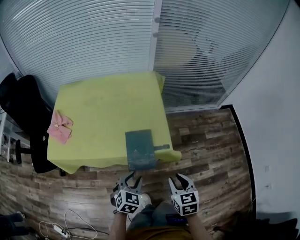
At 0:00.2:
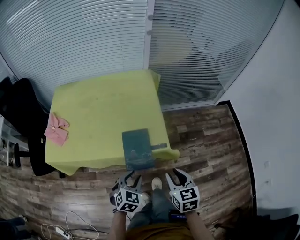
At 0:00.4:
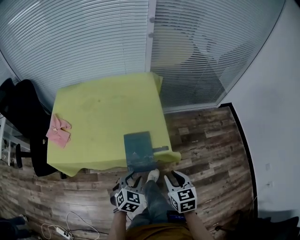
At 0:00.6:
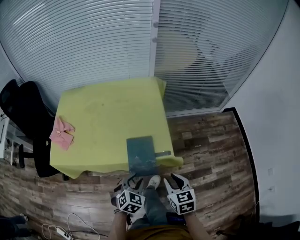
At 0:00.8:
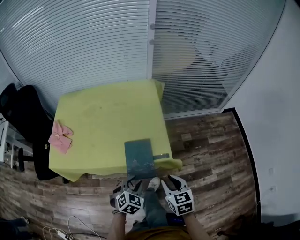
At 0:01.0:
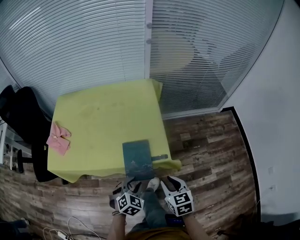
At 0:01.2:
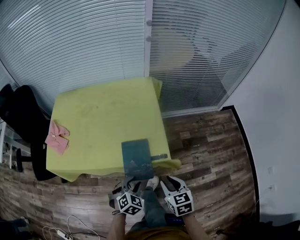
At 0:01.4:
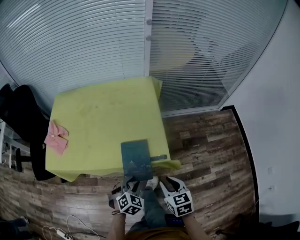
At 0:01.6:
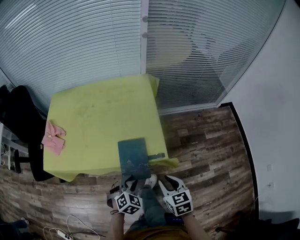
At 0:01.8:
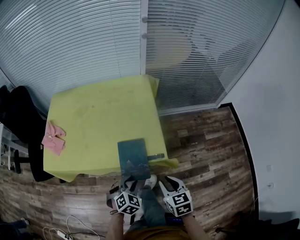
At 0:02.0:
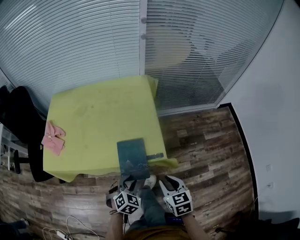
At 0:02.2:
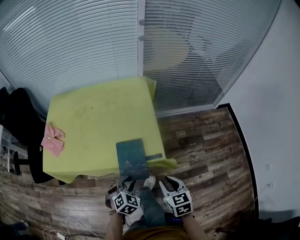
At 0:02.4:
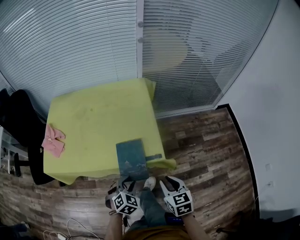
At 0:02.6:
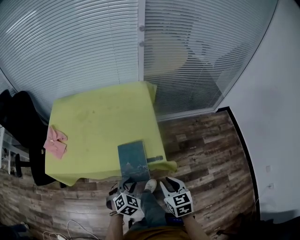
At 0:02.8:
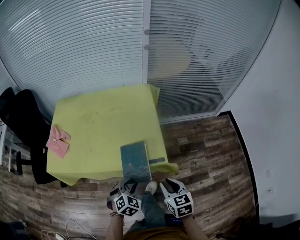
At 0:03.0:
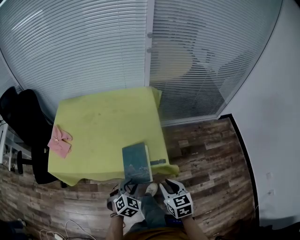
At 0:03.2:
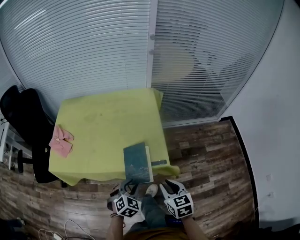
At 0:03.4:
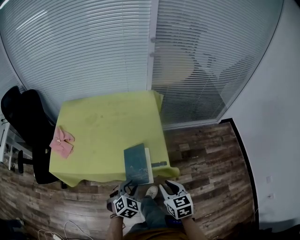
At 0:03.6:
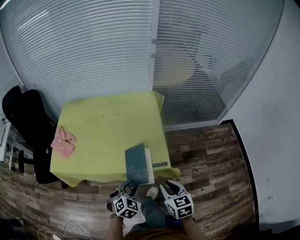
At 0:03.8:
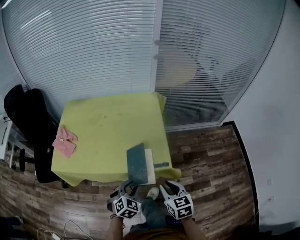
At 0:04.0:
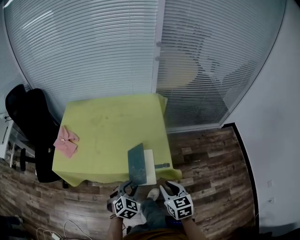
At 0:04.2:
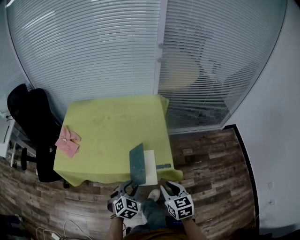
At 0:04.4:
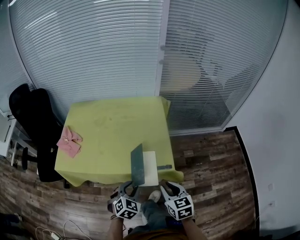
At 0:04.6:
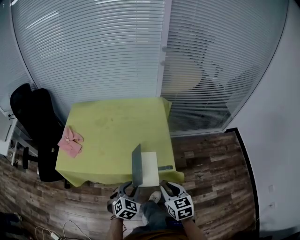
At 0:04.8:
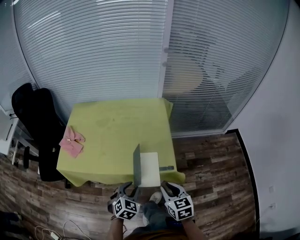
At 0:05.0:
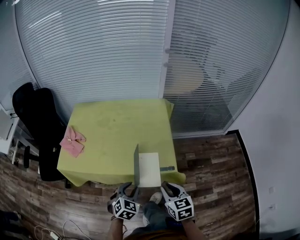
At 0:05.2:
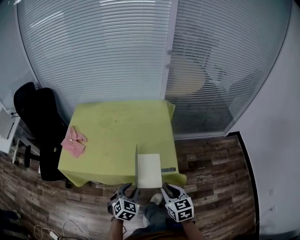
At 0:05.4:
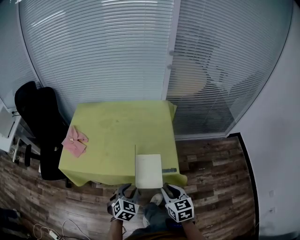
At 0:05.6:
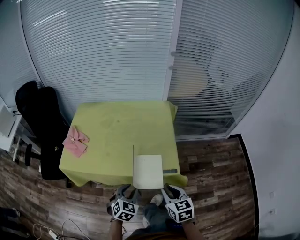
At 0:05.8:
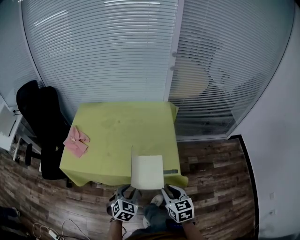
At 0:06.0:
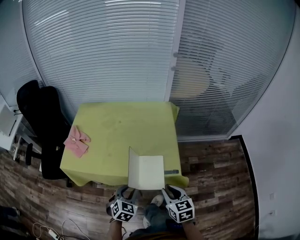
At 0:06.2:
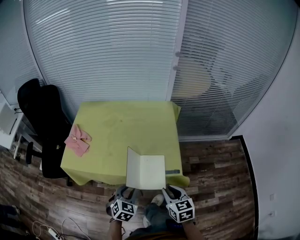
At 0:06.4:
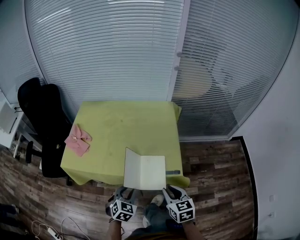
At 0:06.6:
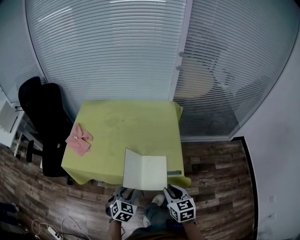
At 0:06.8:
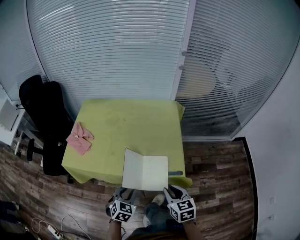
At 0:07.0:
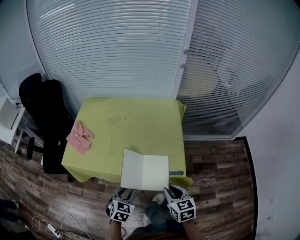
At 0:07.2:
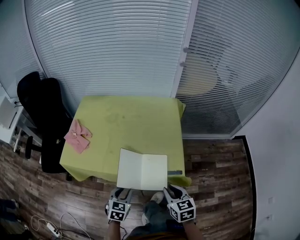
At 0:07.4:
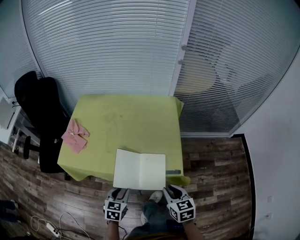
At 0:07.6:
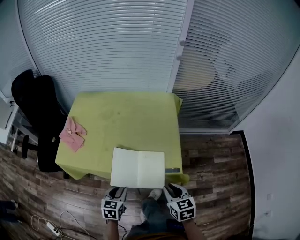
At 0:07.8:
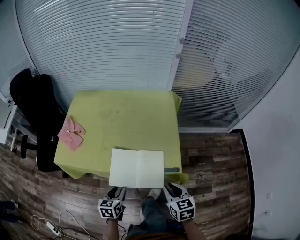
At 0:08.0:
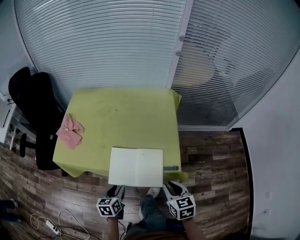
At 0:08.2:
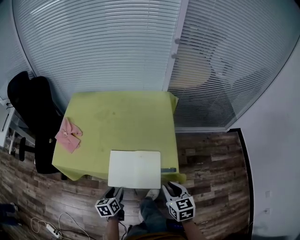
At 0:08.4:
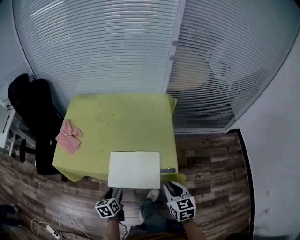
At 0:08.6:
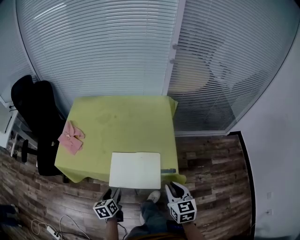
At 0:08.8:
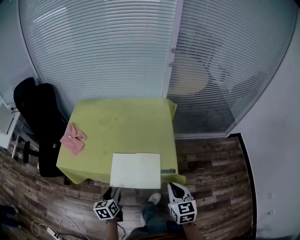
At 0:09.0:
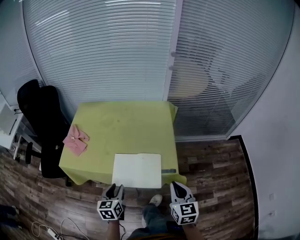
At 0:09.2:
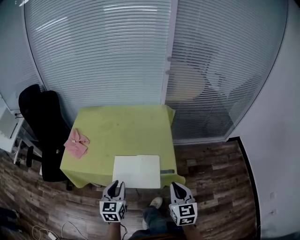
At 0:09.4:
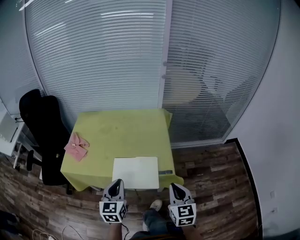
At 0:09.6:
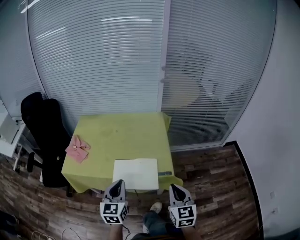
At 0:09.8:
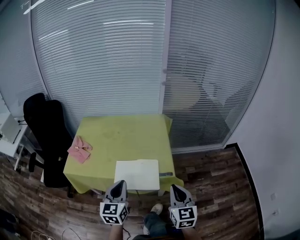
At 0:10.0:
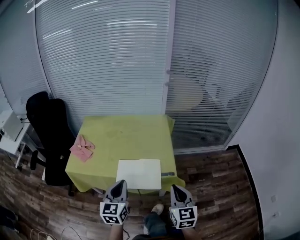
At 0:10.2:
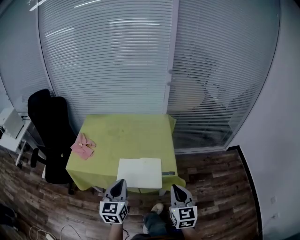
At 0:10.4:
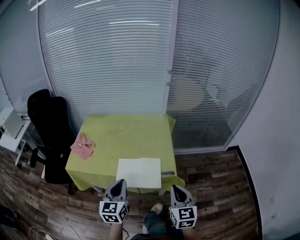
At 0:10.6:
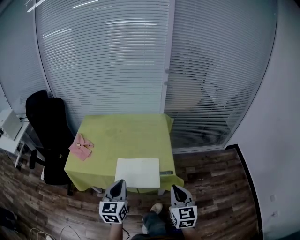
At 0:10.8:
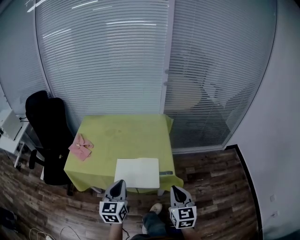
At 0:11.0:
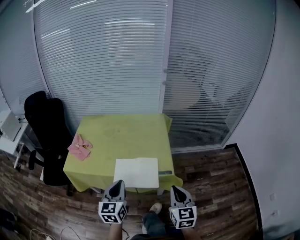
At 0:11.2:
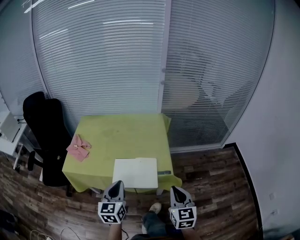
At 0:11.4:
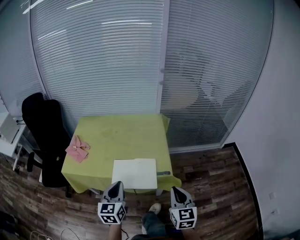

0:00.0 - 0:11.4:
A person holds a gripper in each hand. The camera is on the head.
0:00.0 - 0:01.4: The left gripper heads downward, covering approximately 5 cm, while the right gripper shifts by some 5 cm.
0:01.4 - 0:02.8: The grippers stay close to where they were, moving slightly.
0:02.8 - 0:04.2: The grippers move only a little.
0:04.2 - 0:05.6: There are only small adjustments of the grippers.
0:05.6 - 0:07.2: The left gripper moves roughly 5 cm.
0:07.2 - 0:08.6: The left gripper is displaced to the left by approximately 5 cm, swivels approximately 40 degrees, and opens.
0:08.6 - 0:10.0: The left gripper travels upward by some 25 cm, swivels approximately 40 degrees, and closes up, while the right gripper shifts about 10 cm upward and backward, and changes its angle by some 20 degrees.
0:10.0 - 0:11.4: The grippers stay close to where they were, moving slightly.

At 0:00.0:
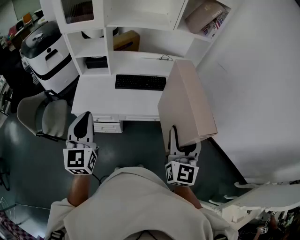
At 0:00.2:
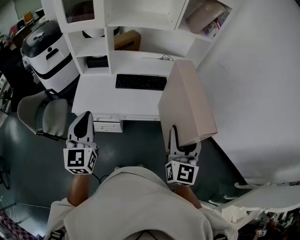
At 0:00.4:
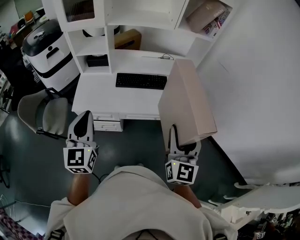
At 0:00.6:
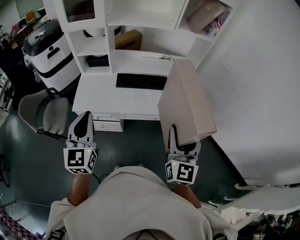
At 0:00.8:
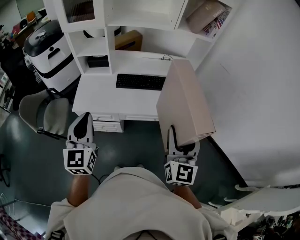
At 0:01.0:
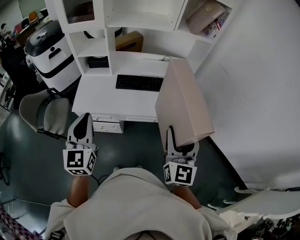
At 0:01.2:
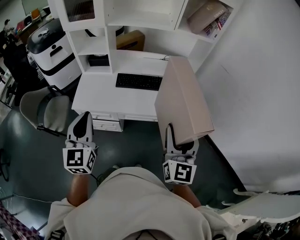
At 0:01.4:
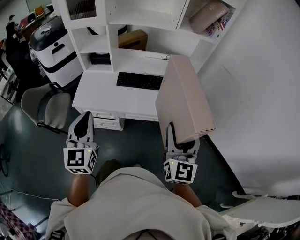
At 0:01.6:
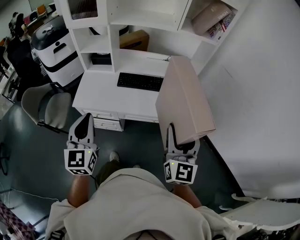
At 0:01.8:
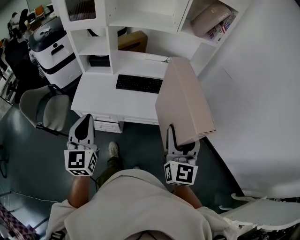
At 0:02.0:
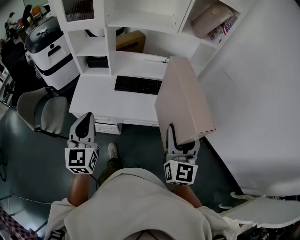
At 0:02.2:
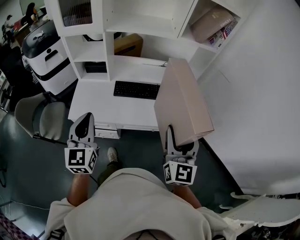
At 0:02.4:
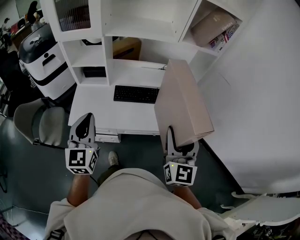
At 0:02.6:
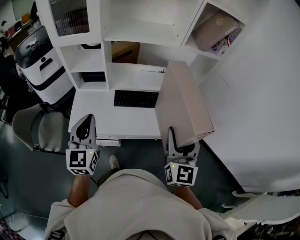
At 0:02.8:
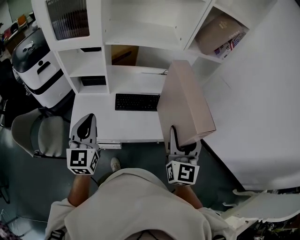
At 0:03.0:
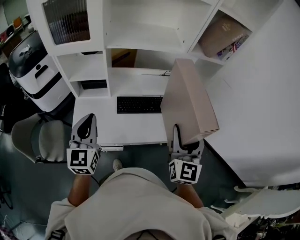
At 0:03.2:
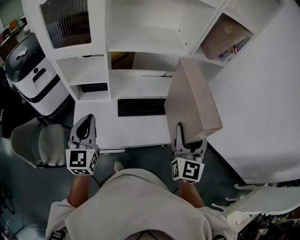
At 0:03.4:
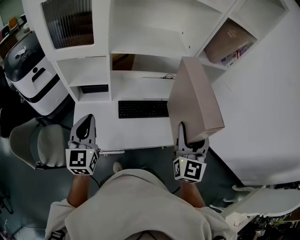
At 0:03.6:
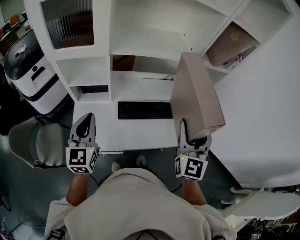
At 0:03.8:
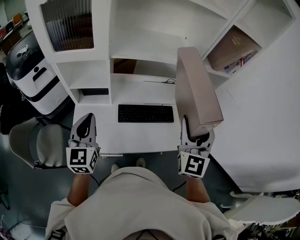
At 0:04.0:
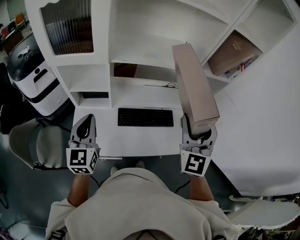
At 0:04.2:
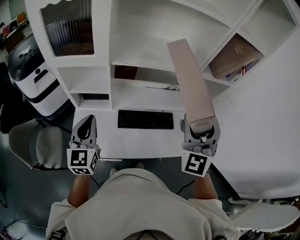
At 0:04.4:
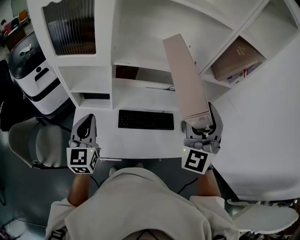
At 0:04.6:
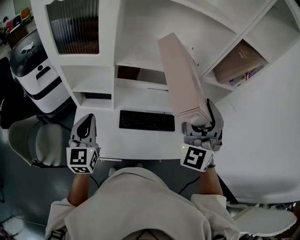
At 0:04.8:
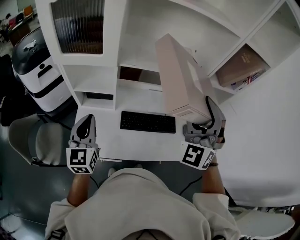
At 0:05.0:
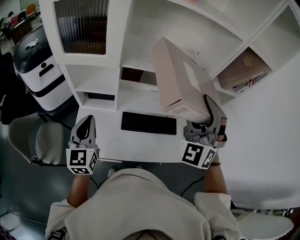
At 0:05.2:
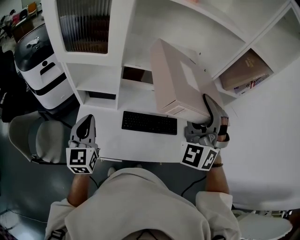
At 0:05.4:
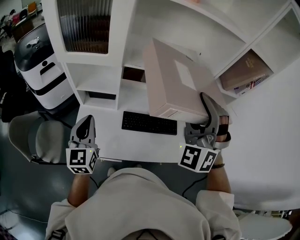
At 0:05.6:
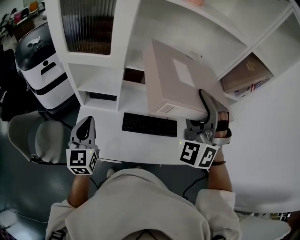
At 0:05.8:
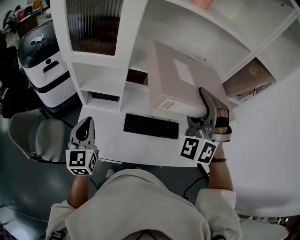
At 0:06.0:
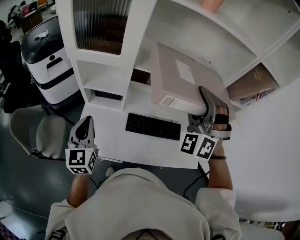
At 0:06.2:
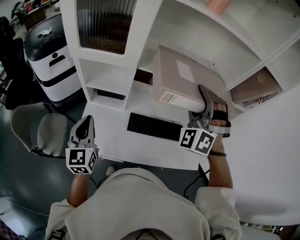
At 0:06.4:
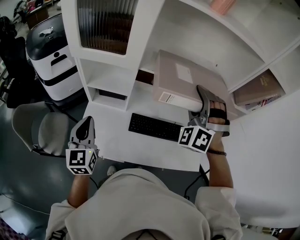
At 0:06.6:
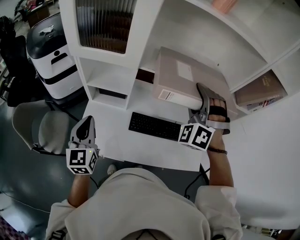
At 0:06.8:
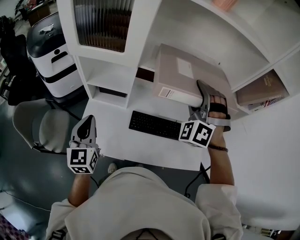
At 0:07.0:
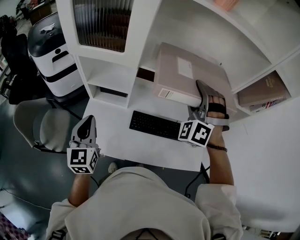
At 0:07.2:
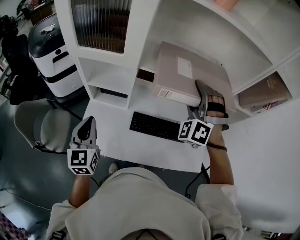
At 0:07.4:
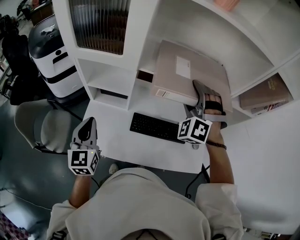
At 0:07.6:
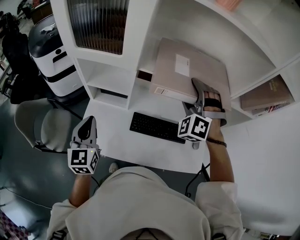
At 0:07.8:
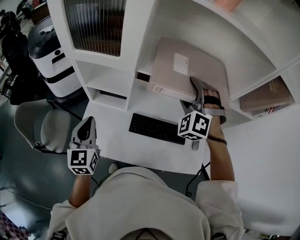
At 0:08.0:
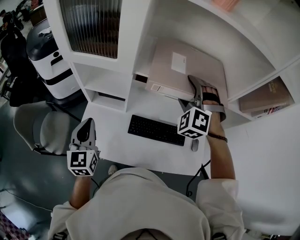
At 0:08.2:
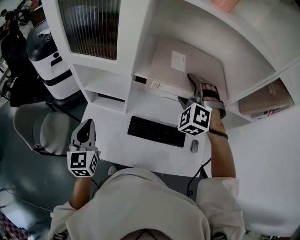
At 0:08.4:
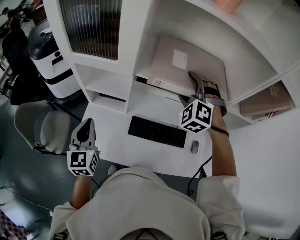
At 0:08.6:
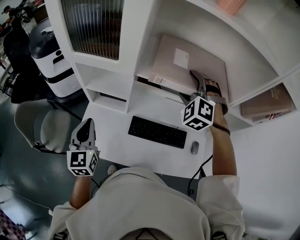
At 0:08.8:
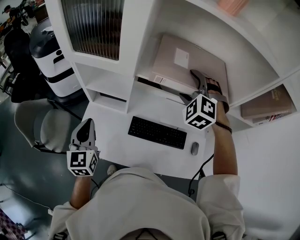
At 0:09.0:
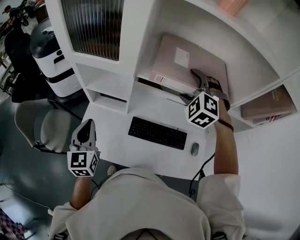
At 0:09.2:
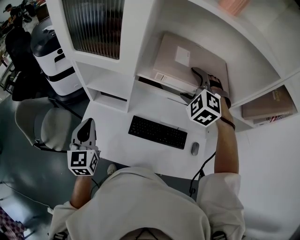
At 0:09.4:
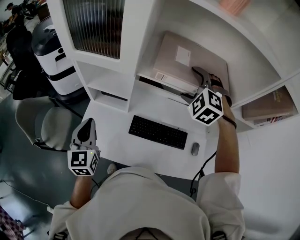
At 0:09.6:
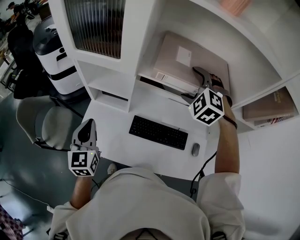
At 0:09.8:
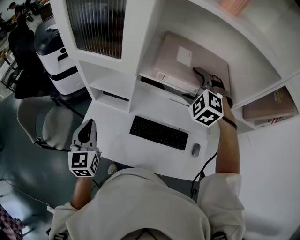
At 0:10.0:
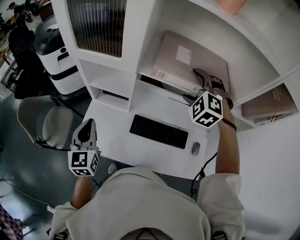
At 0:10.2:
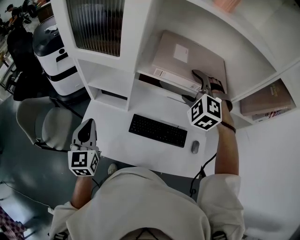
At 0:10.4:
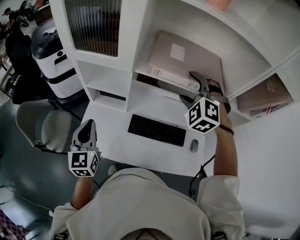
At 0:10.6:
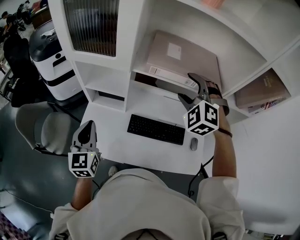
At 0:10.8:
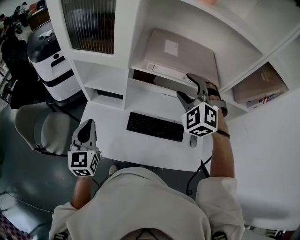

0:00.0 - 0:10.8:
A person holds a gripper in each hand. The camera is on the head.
0:00.0 - 0:01.6: The left gripper changes place by roughly 5 cm.
0:01.6 - 0:03.0: Both grippers move forward and to the left, approximately 25 cm.
0:03.0 - 0:04.6: The left gripper is displaced forward and to the left by roughly 10 cm; the right gripper is displaced forward and upward by approximately 20 cm, and twists approximately 40 degrees counterclockwise, seen from behind.
0:04.6 - 0:06.2: The right gripper travels forward and to the left by some 10 cm, and swivels about 40 degrees. Meanwhile the left gripper travels to the left by about 5 cm.
0:06.2 - 0:07.8: The right gripper is displaced forward and downward by about 10 cm.
0:07.8 - 0:09.2: The right gripper is displaced forward by approximately 5 cm.
0:09.2 - 0:10.8: The right gripper travels backward by about 10 cm.

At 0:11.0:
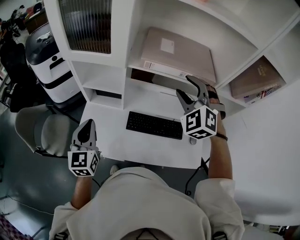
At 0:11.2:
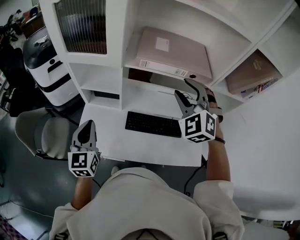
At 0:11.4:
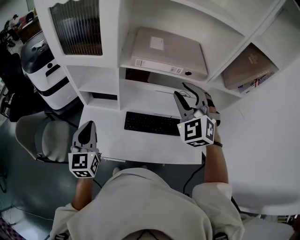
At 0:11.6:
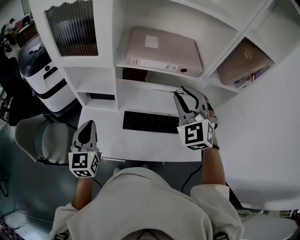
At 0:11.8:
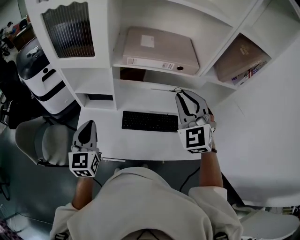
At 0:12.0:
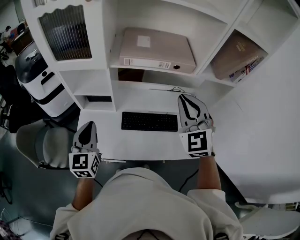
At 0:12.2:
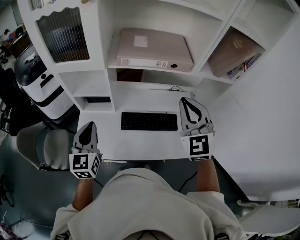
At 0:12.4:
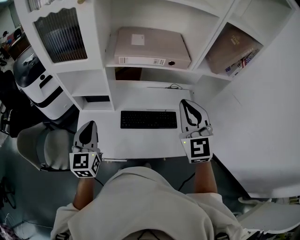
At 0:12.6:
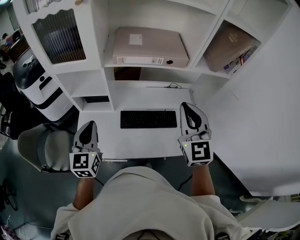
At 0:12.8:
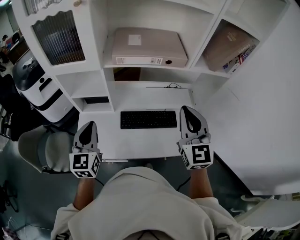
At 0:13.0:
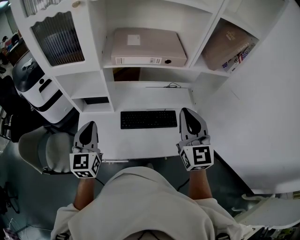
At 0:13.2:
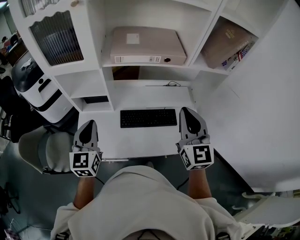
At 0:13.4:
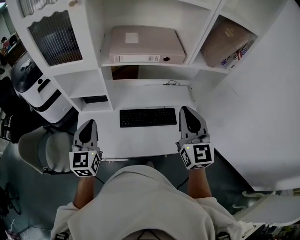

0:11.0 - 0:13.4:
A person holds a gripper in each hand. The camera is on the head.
0:11.0 - 0:12.2: The left gripper is displaced to the right by roughly 5 cm. Meanwhile the right gripper heads backward and to the right, covering roughly 15 cm, turns by roughly 40 degrees, and closes up.
0:12.2 - 0:13.4: The right gripper shifts roughly 5 cm backward, and turns by approximately 30 degrees.
